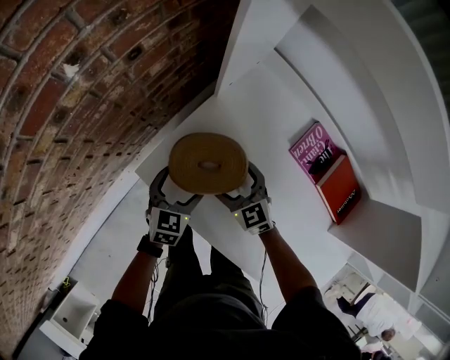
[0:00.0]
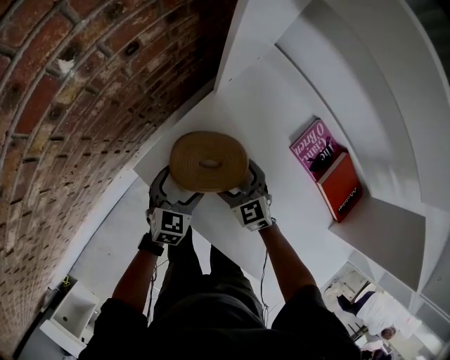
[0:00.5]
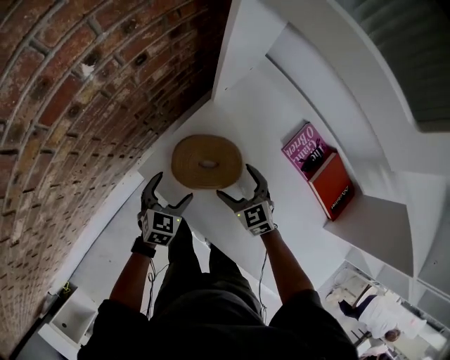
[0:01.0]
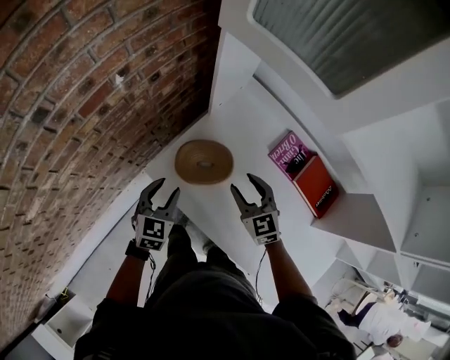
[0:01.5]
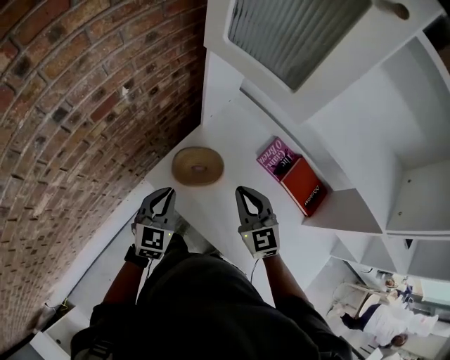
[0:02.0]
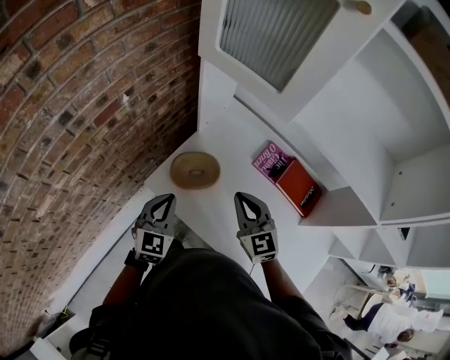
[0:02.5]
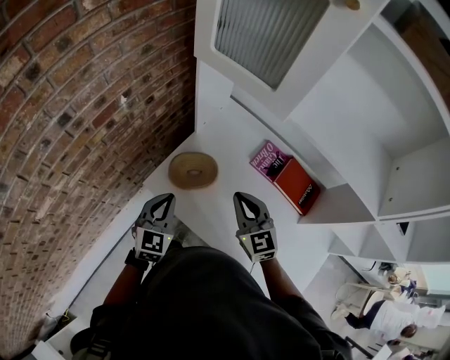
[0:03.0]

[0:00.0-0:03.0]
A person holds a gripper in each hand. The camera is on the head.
0:00.0 to 0:01.5: Both grippers travel together upward, about 15 cm. The left gripper closes its fingers; the right gripper closes up.
0:01.5 to 0:03.0: The two grippers go about 15 cm upward and backward. The right gripper closes; the left gripper closes.

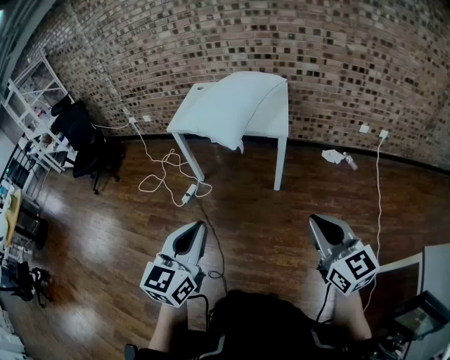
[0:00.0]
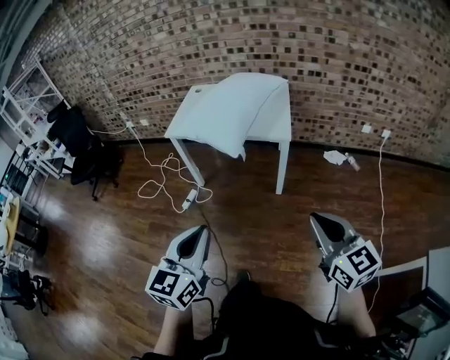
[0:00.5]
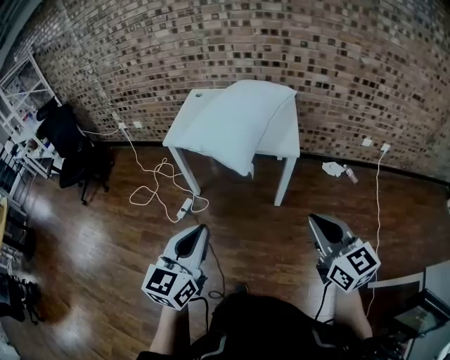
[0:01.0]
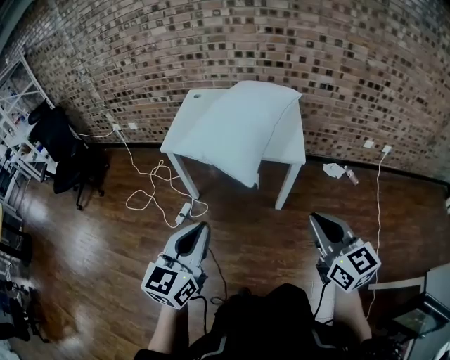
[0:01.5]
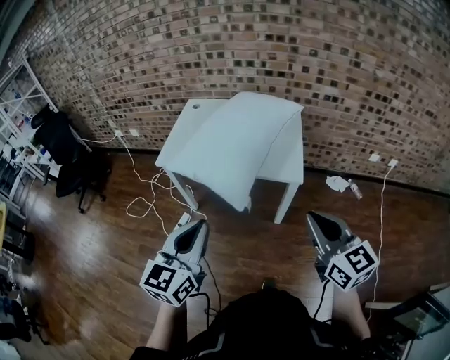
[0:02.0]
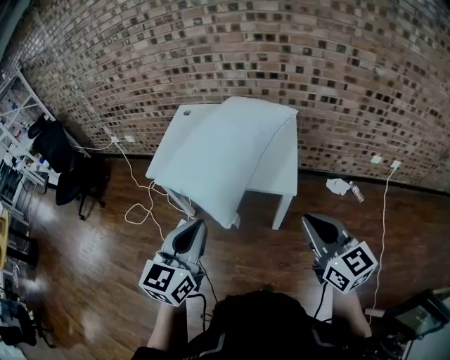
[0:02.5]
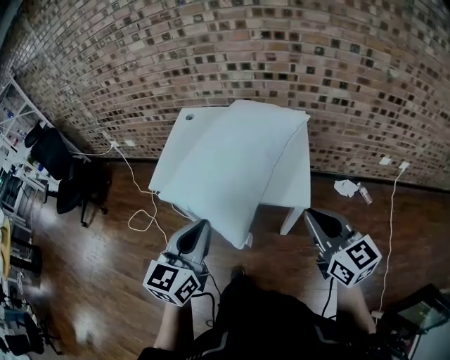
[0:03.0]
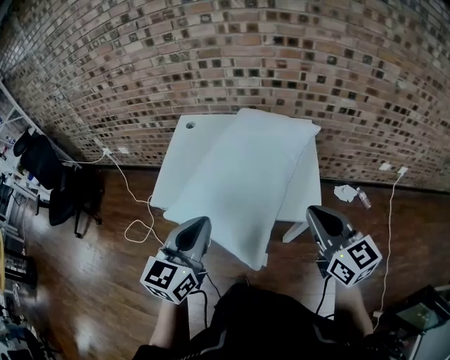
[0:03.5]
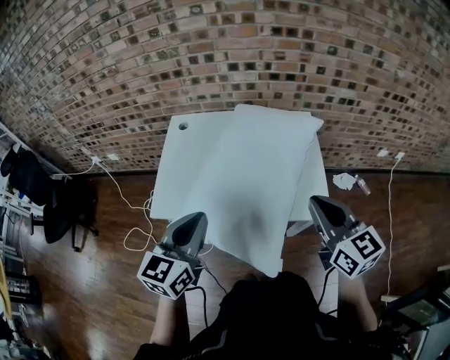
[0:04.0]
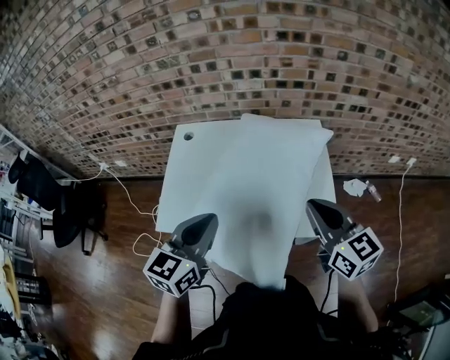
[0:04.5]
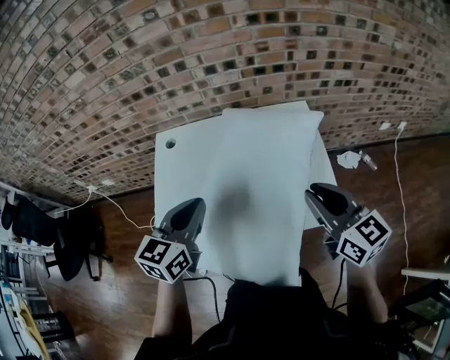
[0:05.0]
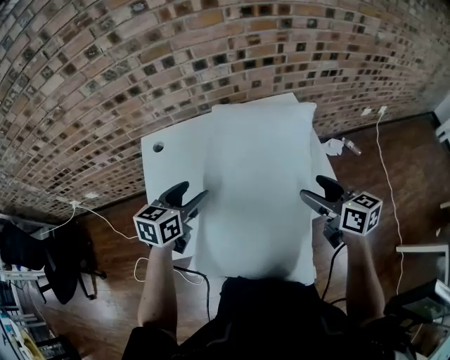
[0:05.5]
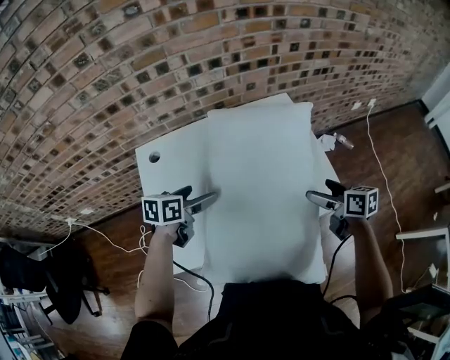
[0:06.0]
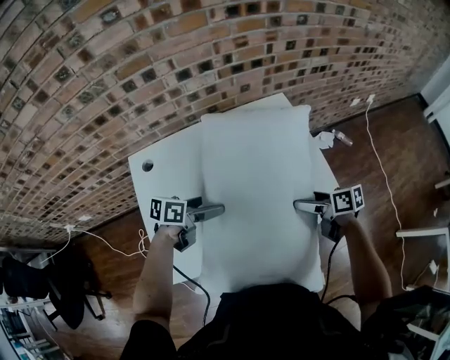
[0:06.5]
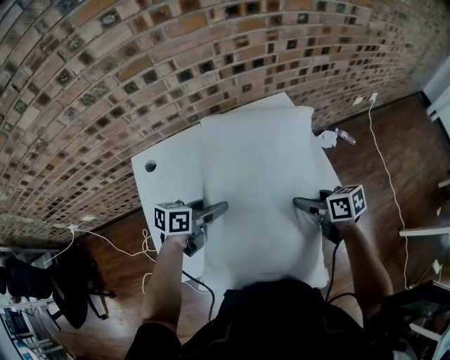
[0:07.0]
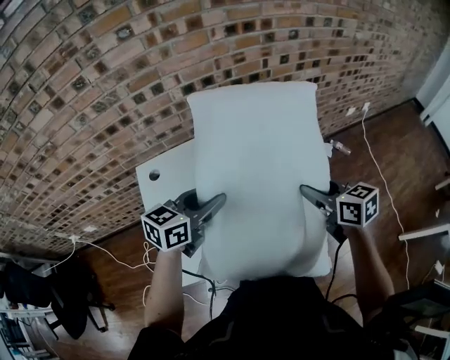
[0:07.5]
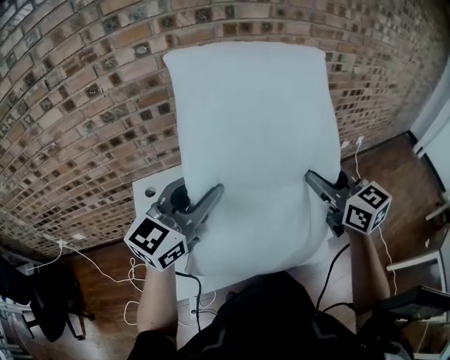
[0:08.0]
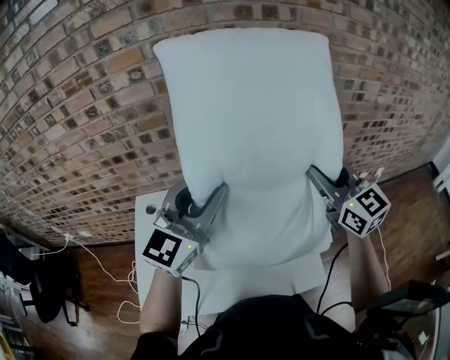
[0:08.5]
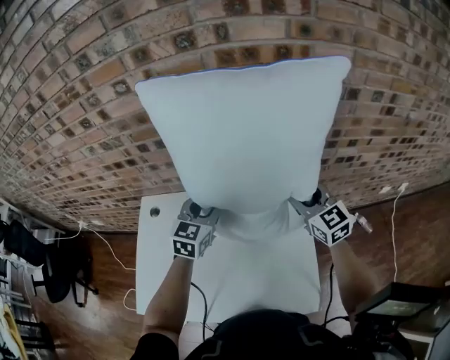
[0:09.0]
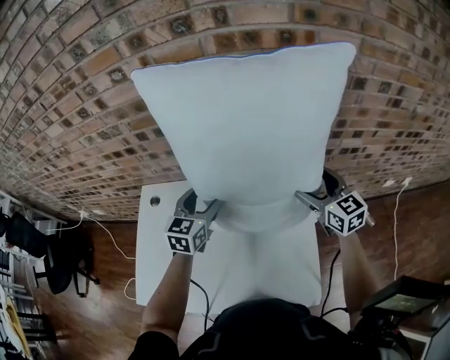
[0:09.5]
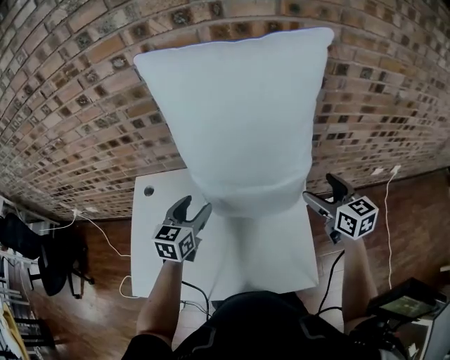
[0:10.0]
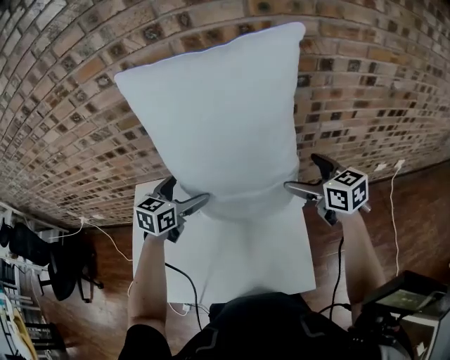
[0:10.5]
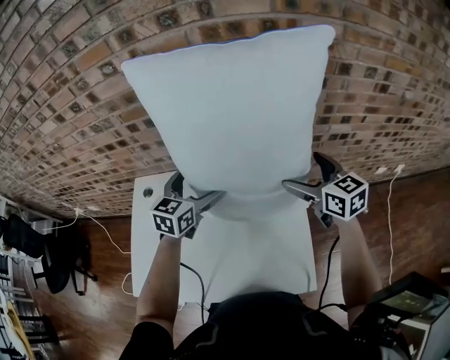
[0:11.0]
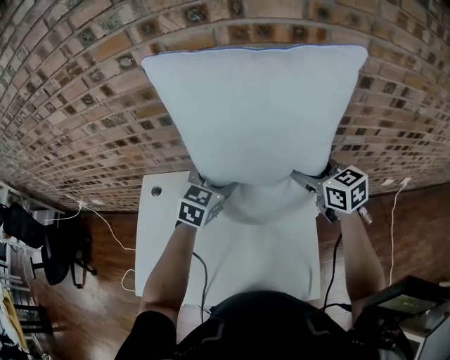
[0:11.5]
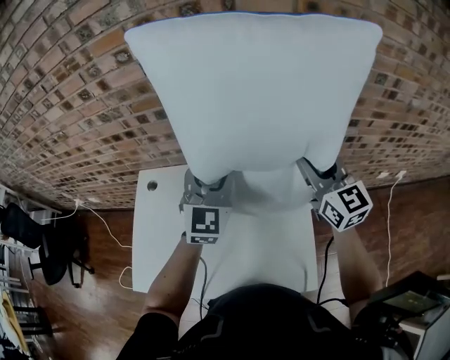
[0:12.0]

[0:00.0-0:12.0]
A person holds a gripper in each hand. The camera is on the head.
0:00.0 to 0:02.0: Both grippers move forward, some 35 cm.
0:02.0 to 0:04.0: Both grippers travel together forward, roughly 30 cm.
0:04.0 to 0:06.0: The right gripper moves downward and forward, about 25 cm, turns by approximately 40 degrees, and opens up, while the left gripper moves forward and downward, some 35 cm, rotates some 50 degrees, and opens its fingers.
0:06.0 to 0:08.0: Both grippers move upward, about 25 cm. The right gripper rotates about 40 degrees, and closes up. The left gripper points its fingers about 30 degrees further upward, and closes.
0:08.0 to 0:10.0: The left gripper heads downward and forward, covering roughly 25 cm, and rotates approximately 40 degrees. The right gripper heads forward, to the right and downward, covering about 25 cm, and opens its fingers.
0:10.0 to 0:12.0: The left gripper heads upward and to the right, covering roughly 15 cm, changes its angle by some 40 degrees, and opens, then closes once more. The right gripper travels upward, to the left and forward by roughly 15 cm, rotates some 20 degrees, and closes.

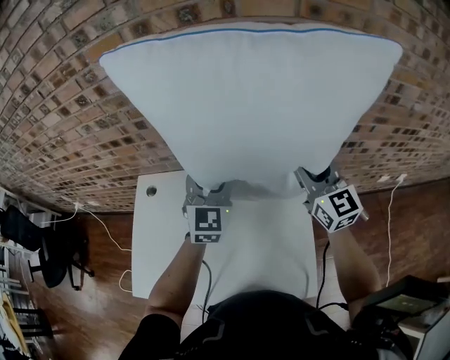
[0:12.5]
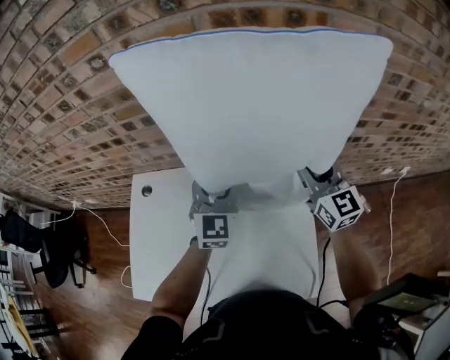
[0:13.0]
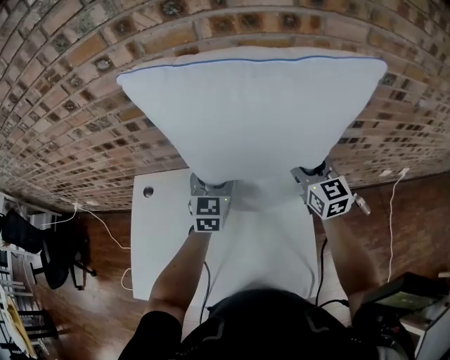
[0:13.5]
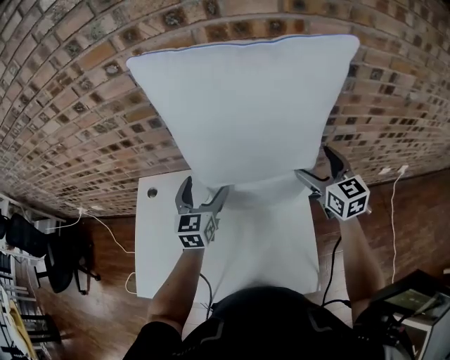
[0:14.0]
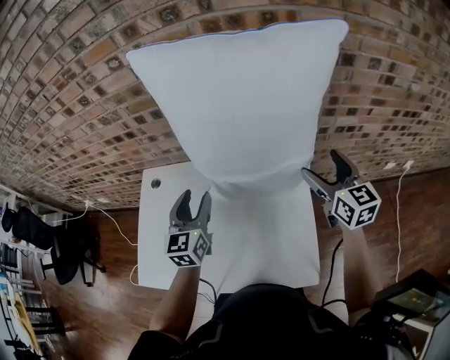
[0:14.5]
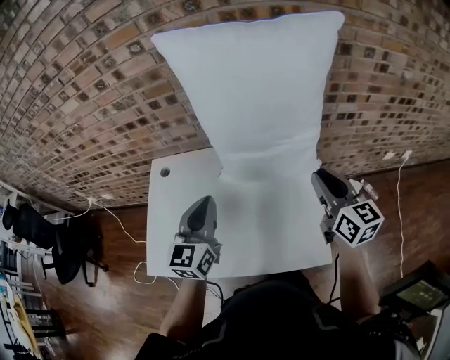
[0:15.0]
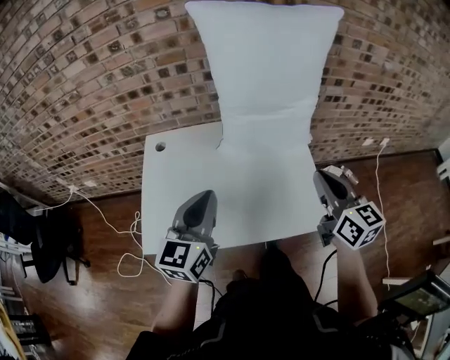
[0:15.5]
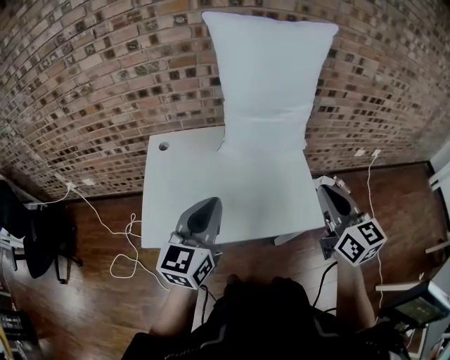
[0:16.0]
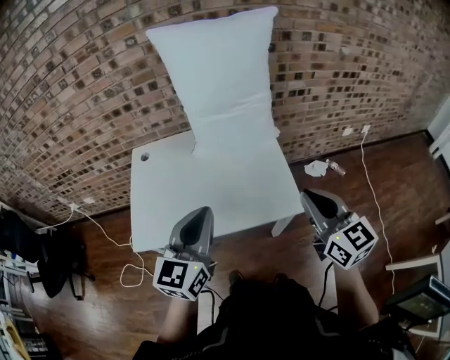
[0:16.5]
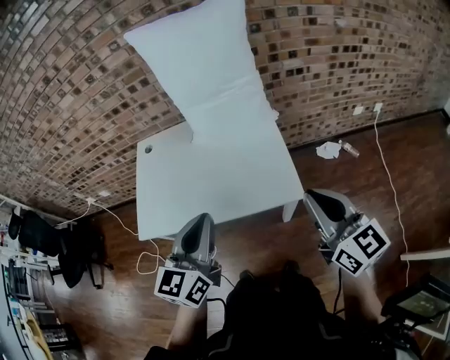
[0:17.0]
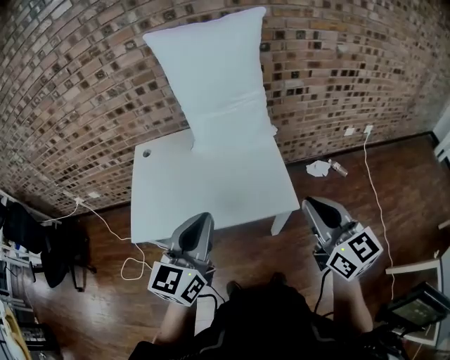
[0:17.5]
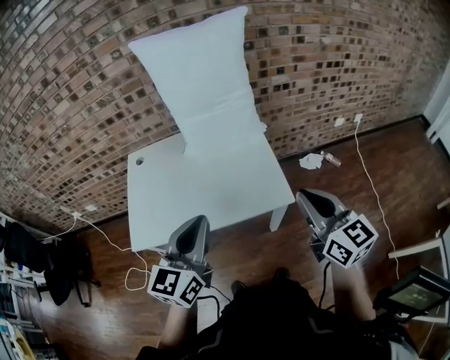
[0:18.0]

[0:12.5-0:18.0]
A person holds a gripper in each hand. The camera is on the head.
0:12.5 to 0:14.5: The right gripper goes approximately 10 cm to the right and backward, and opens its fingers; the left gripper travels backward, to the left and downward by approximately 15 cm, swivels approximately 30 degrees, and opens, then closes once more.
0:14.5 to 0:16.0: The left gripper moves backward, some 30 cm, swivels approximately 20 degrees, and closes. Meanwhile the right gripper travels backward and to the left by about 35 cm, and closes up.
0:16.0 to 0:18.0: The right gripper goes roughly 15 cm backward and to the right. Meanwhile the left gripper travels to the right and backward by about 15 cm.

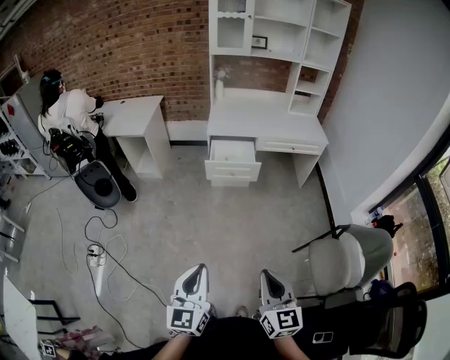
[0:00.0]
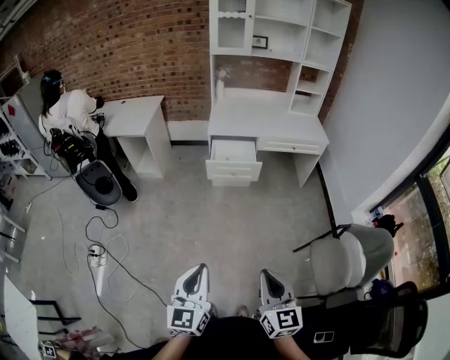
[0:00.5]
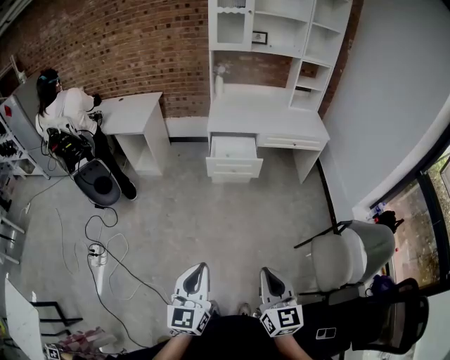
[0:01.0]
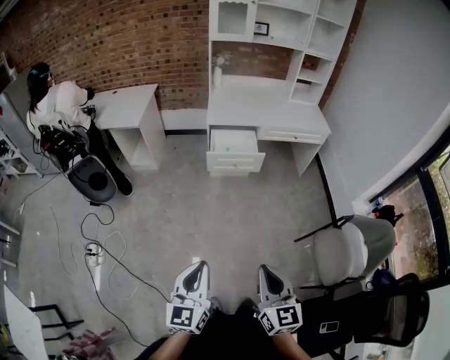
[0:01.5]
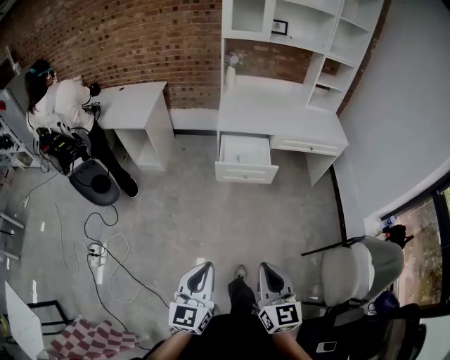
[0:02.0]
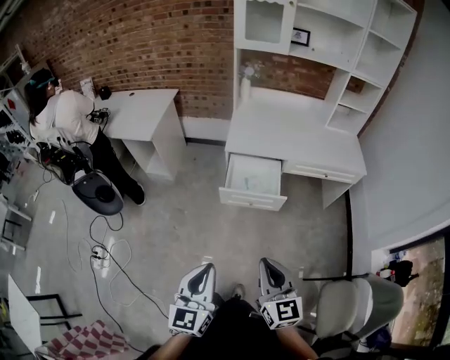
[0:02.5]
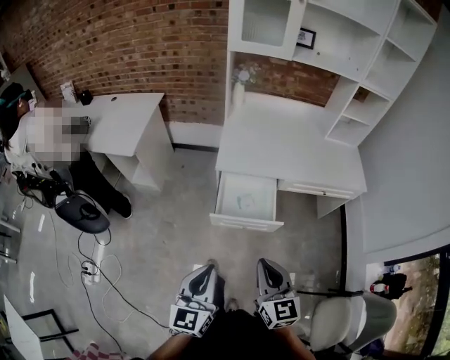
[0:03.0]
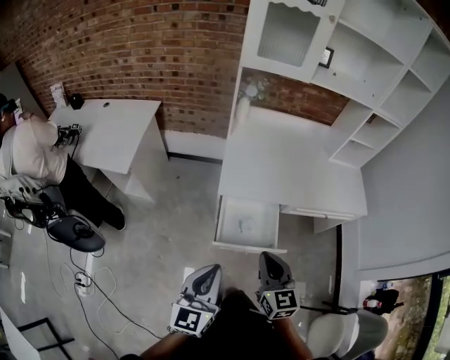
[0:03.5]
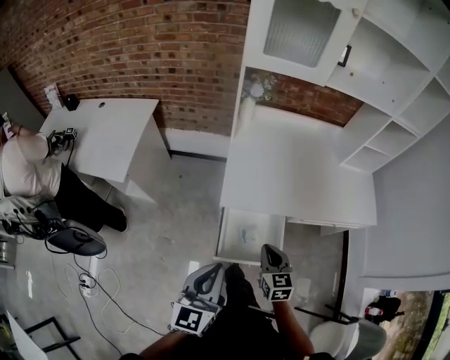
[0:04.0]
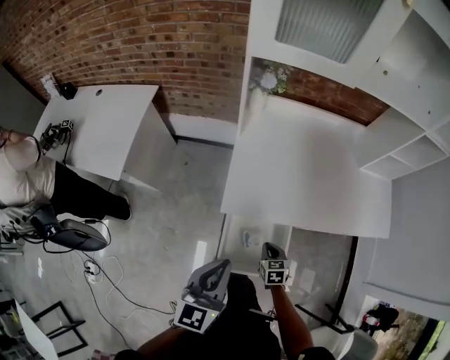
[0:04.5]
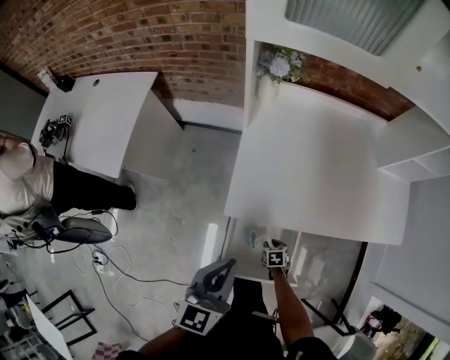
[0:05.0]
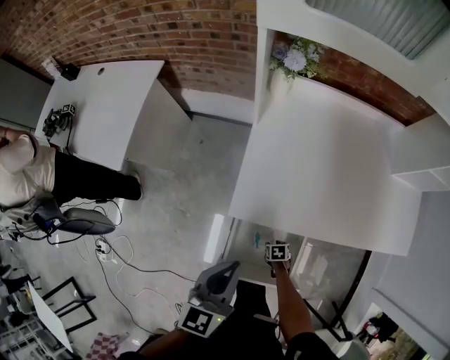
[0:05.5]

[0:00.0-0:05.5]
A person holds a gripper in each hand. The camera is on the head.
0:00.0 to 0:02.0: The two grippers go roughly 15 cm forward.
0:02.0 to 0:03.5: The pair of grippers is taken forward, some 50 cm.
0:03.5 to 0:05.5: The right gripper heads downward, covering roughly 50 cm, angles its fingers downward, by approximately 60 degrees, and opens, while the left gripper changes place by about 35 cm.
